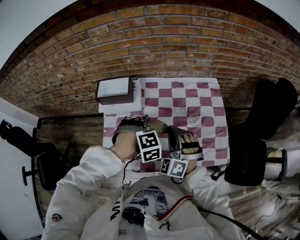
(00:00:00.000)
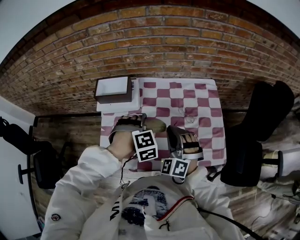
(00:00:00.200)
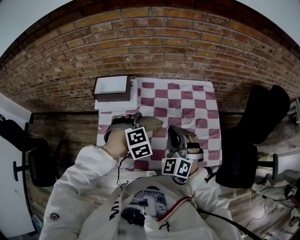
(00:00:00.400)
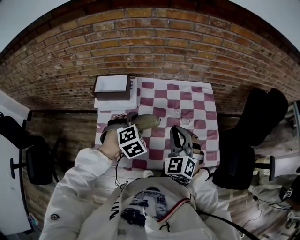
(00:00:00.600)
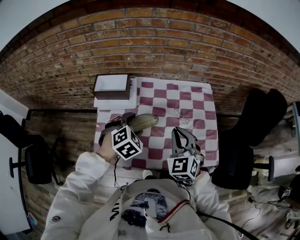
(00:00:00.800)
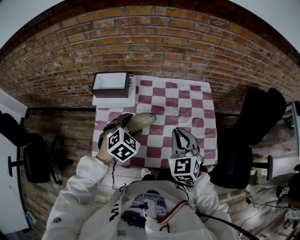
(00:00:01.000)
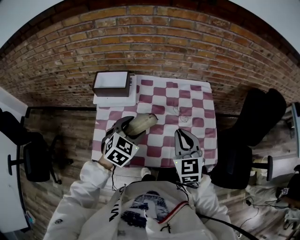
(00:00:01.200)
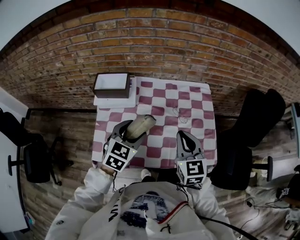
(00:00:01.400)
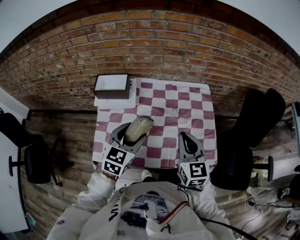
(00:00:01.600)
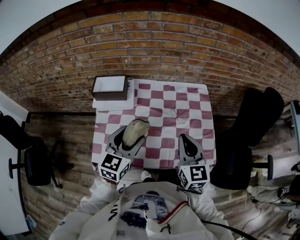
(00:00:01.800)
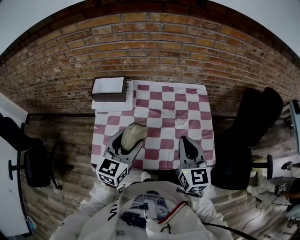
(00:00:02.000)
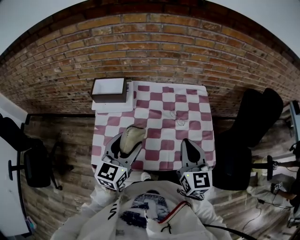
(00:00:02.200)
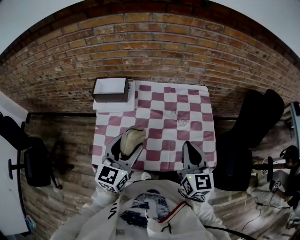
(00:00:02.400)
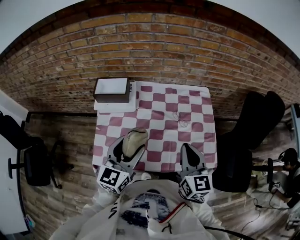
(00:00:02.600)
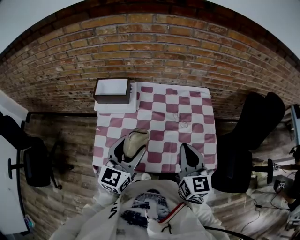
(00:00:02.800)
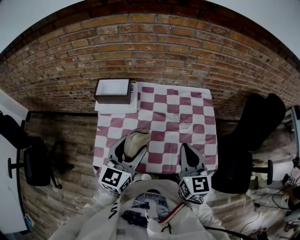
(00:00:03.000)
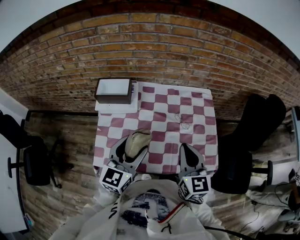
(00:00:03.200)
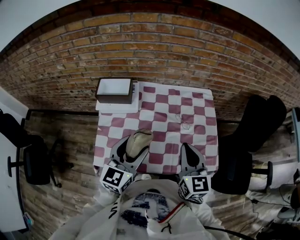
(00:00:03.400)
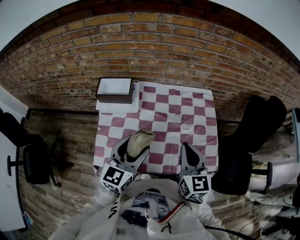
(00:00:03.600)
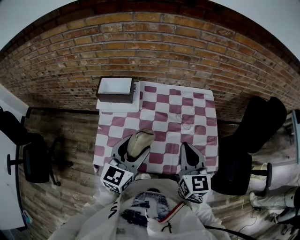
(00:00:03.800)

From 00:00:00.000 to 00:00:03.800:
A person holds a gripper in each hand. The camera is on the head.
From 00:00:00.000 to 00:00:01.200: The right gripper heads upward and to the right, covering about 10 cm, and rotates around the line of its fingers by approximately 50 degrees, clockwise from behind, while the left gripper heads upward, covering approximately 5 cm, and rotates roughly 60 degrees.
From 00:00:01.200 to 00:00:02.600: The left gripper travels upward and backward by about 10 cm, and tilts its fingers some 30 degrees upward. The right gripper moves approximately 5 cm, and turns by about 20 degrees.
From 00:00:02.600 to 00:00:03.800: The grippers make only small movements.

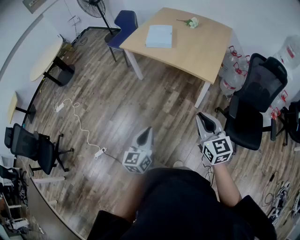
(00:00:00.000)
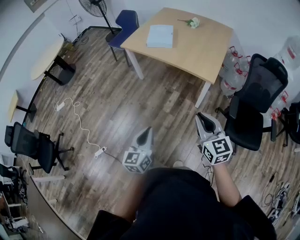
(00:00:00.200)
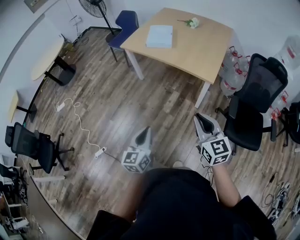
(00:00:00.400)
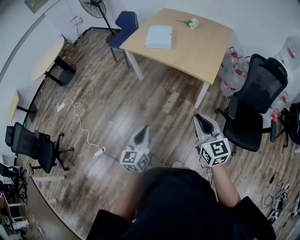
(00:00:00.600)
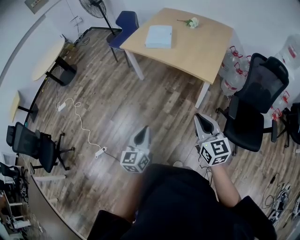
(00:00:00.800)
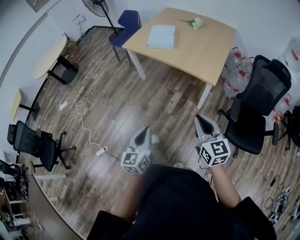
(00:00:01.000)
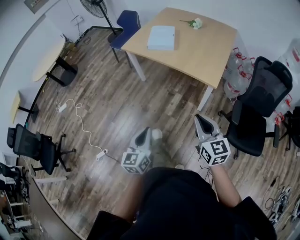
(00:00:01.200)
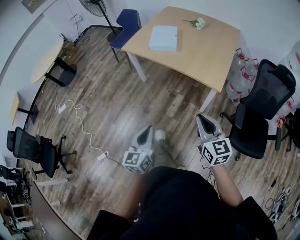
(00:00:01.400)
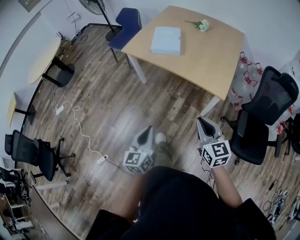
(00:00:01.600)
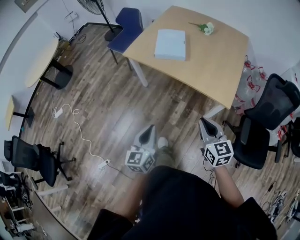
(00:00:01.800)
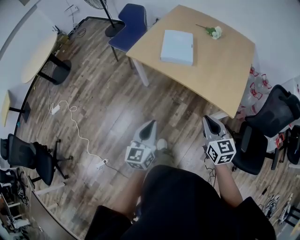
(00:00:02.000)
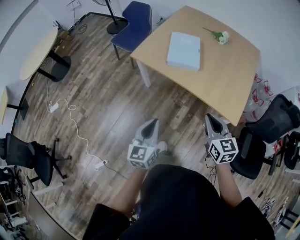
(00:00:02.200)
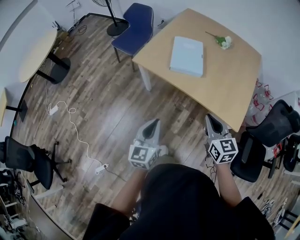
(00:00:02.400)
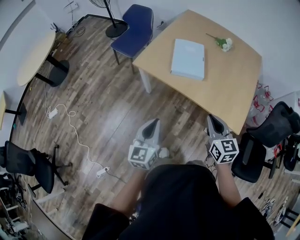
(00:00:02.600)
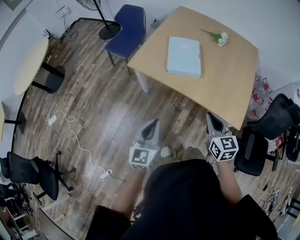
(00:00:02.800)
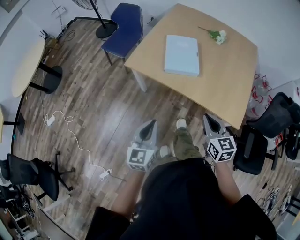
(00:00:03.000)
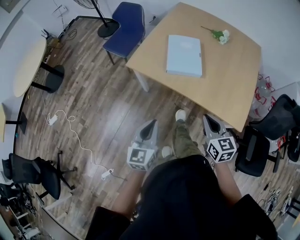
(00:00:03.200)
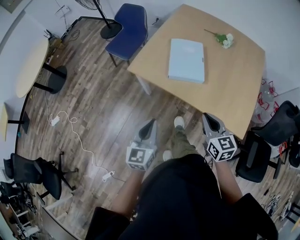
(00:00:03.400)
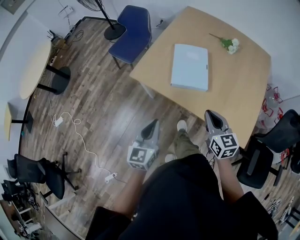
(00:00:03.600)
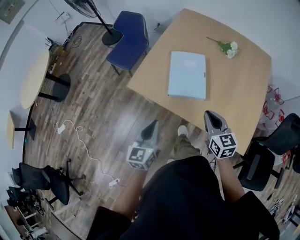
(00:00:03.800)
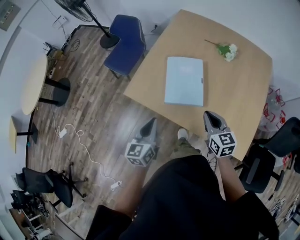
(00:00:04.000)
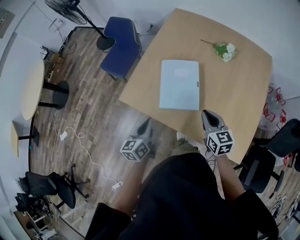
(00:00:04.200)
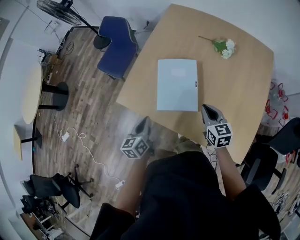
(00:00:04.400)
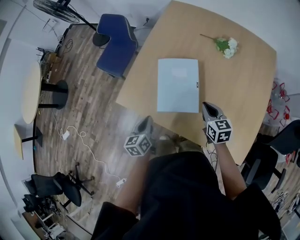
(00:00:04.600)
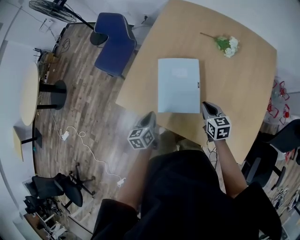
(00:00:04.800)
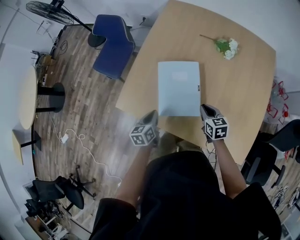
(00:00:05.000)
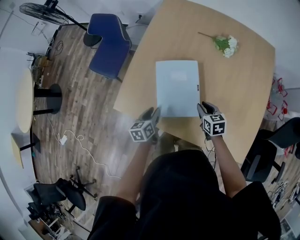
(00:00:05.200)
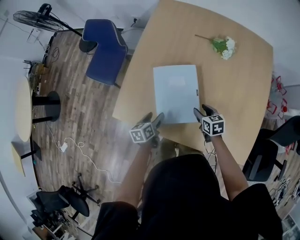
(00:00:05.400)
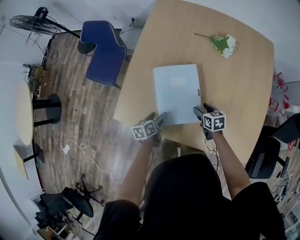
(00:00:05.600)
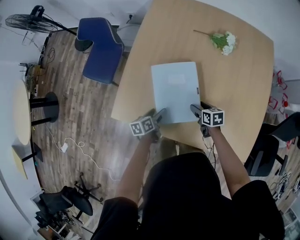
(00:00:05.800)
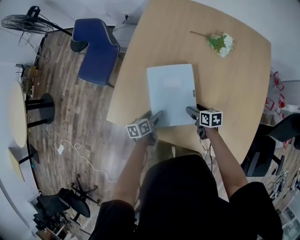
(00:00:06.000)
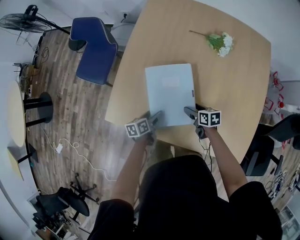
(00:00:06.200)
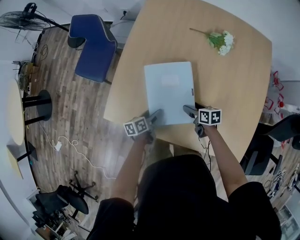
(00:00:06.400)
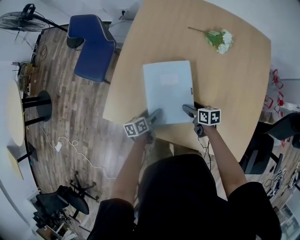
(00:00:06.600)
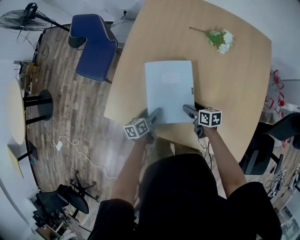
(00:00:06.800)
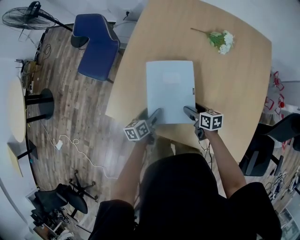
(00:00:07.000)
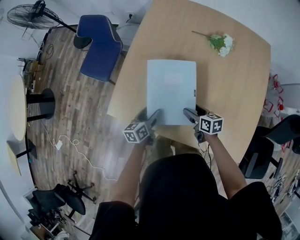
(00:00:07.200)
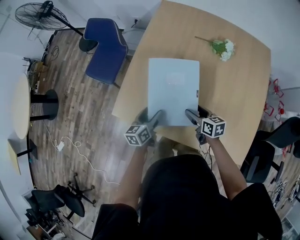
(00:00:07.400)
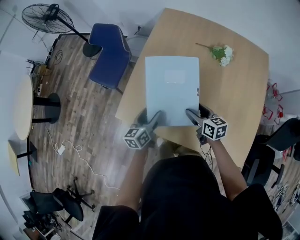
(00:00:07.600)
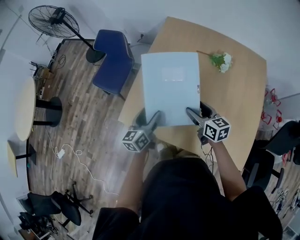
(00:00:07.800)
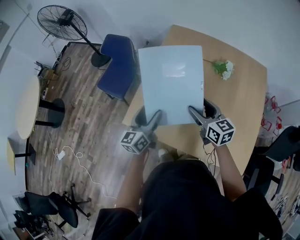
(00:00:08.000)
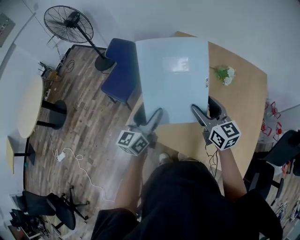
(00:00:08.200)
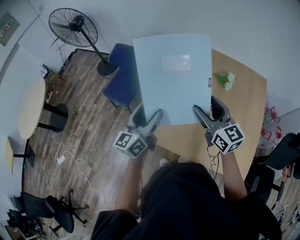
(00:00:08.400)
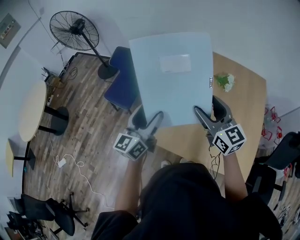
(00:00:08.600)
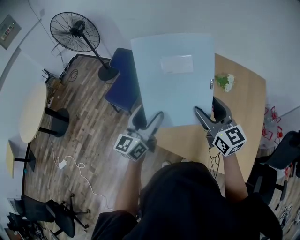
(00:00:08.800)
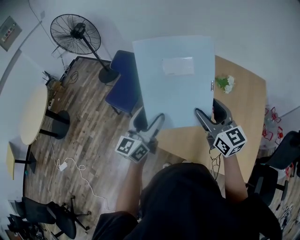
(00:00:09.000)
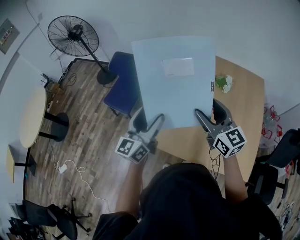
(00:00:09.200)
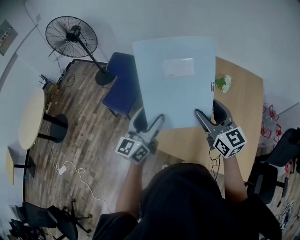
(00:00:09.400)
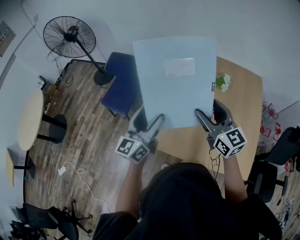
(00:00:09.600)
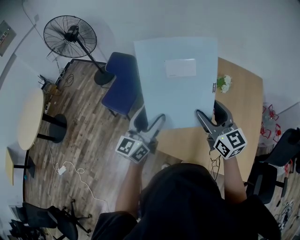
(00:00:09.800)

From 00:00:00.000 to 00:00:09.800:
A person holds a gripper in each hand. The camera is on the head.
From 00:00:00.000 to 00:00:01.400: The two grippers go some 10 cm forward.
From 00:00:01.400 to 00:00:02.800: The two grippers travel together, forward and to the left, roughly 50 cm.
From 00:00:02.800 to 00:00:04.200: The two grippers go about 35 cm forward. The left gripper rotates some 30 degrees.
From 00:00:04.200 to 00:00:05.600: Both grippers travel together downward and forward, about 25 cm. The right gripper rotates roughly 30 degrees, and opens up; the left gripper turns by roughly 30 degrees, and opens its fingers.
From 00:00:05.600 to 00:00:07.000: There are only small adjustments of the grippers.
From 00:00:07.000 to 00:00:08.400: The two grippers go approximately 40 cm upward. The left gripper points its fingers some 40 degrees further upward, while the right gripper tilts its fingers approximately 30 degrees upward.
From 00:00:08.400 to 00:00:09.800: The grippers make only small movements.

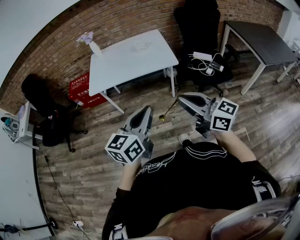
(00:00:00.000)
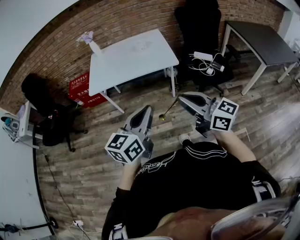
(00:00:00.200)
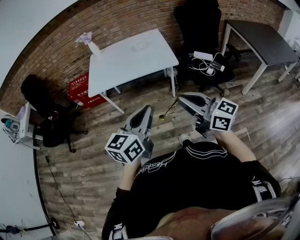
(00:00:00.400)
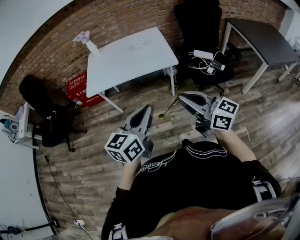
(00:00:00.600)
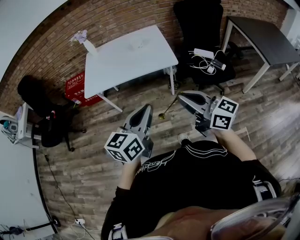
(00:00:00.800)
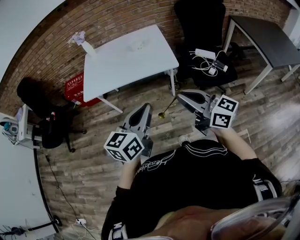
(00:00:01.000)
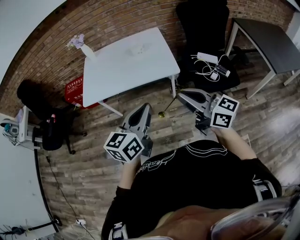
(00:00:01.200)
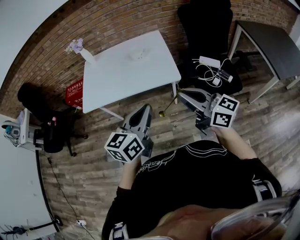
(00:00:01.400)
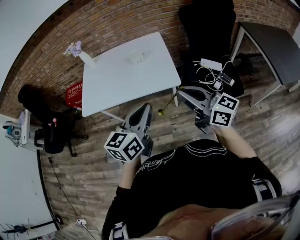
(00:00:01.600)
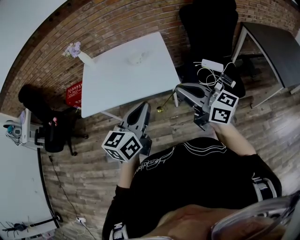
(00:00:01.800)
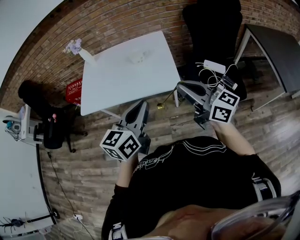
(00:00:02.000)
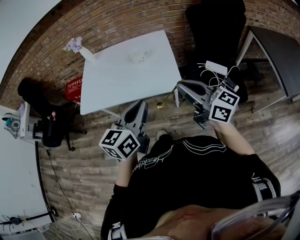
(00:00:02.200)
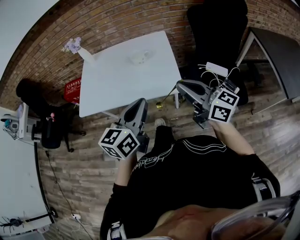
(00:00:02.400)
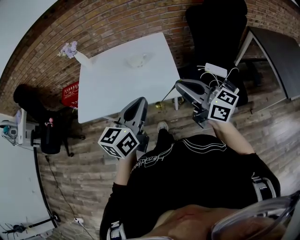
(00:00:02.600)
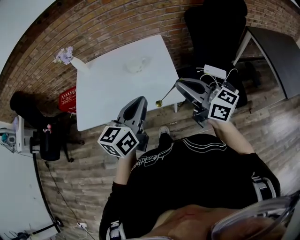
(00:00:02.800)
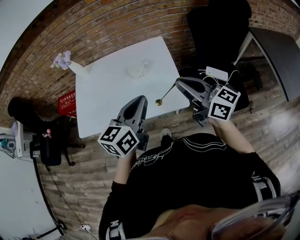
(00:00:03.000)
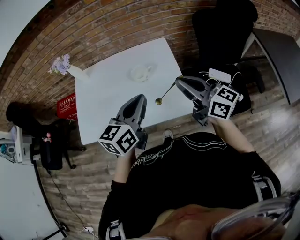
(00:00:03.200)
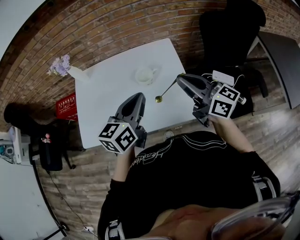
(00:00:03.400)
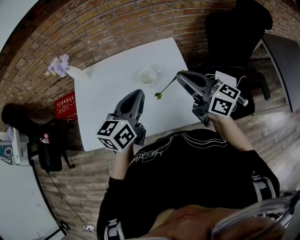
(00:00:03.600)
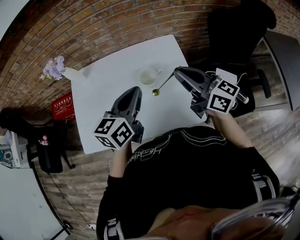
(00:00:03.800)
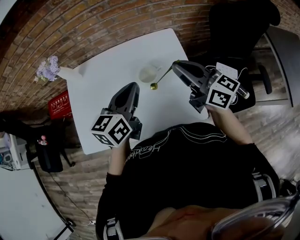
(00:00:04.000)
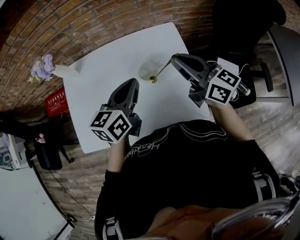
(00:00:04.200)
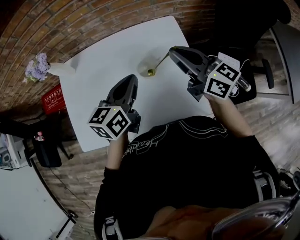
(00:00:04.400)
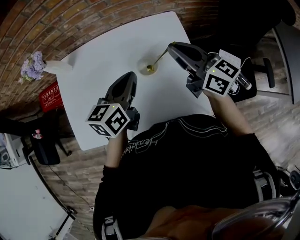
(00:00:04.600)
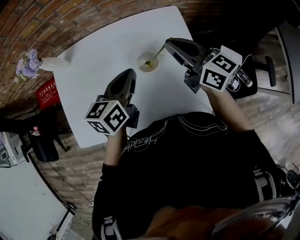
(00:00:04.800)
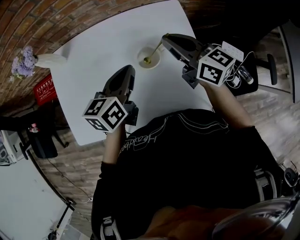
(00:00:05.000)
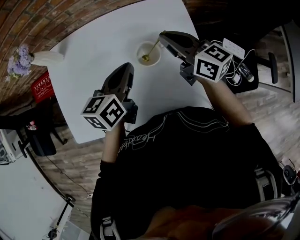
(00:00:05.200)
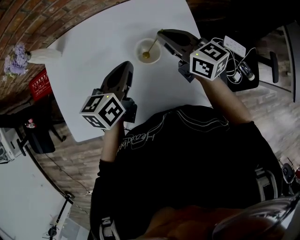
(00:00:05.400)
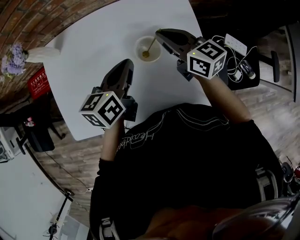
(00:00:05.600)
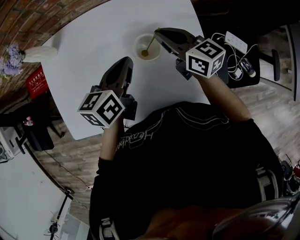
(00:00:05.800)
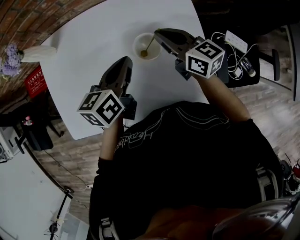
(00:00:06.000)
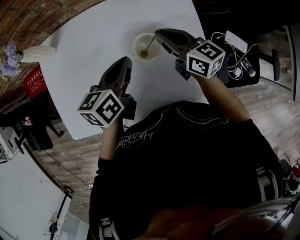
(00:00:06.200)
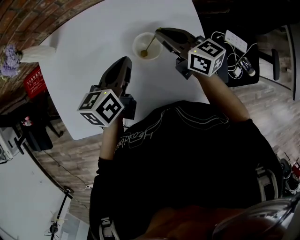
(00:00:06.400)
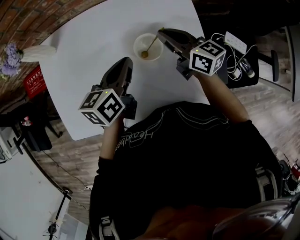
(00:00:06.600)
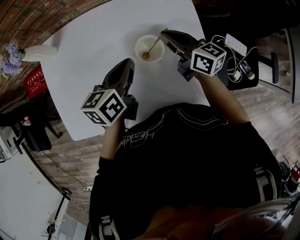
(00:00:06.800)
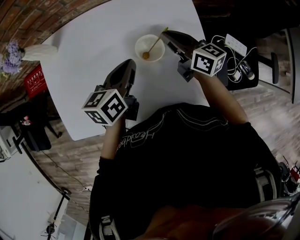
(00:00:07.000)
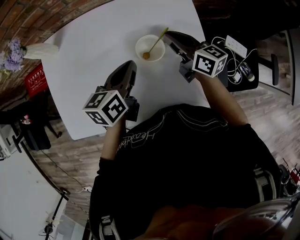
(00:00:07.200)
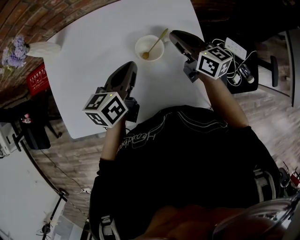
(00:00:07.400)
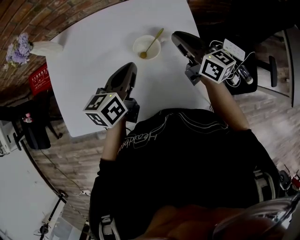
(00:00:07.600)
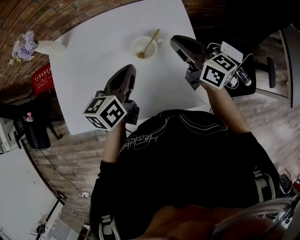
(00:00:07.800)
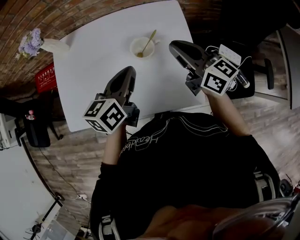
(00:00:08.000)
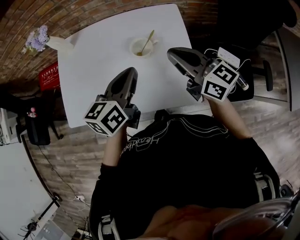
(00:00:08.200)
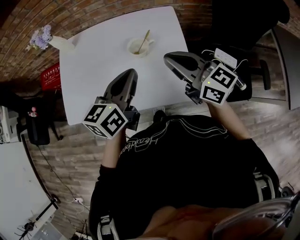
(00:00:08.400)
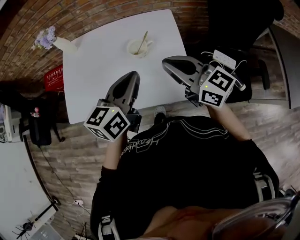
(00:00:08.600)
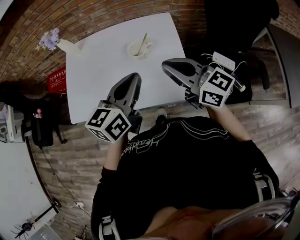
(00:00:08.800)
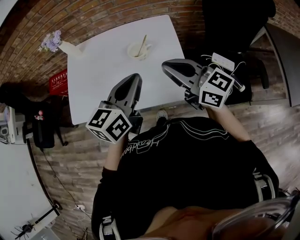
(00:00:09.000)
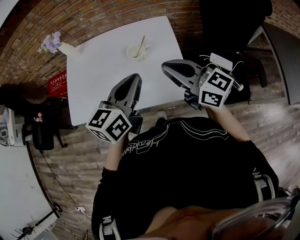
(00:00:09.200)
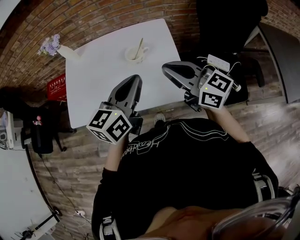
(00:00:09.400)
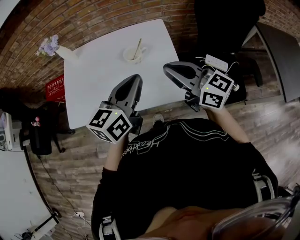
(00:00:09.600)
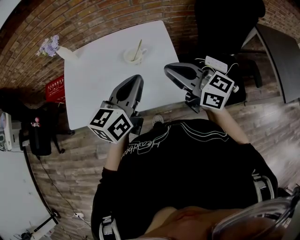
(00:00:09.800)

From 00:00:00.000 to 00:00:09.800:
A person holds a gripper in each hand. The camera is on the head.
From 00:00:00.000 to 00:00:01.400: The grippers both shift forward and to the right by about 25 cm.
From 00:00:01.400 to 00:00:02.800: The grippers both shift forward by roughly 20 cm.
From 00:00:02.800 to 00:00:04.200: Both grippers travel together forward, some 30 cm.
From 00:00:04.200 to 00:00:05.600: Both grippers move downward and forward, roughly 15 cm.
From 00:00:05.600 to 00:00:07.000: The right gripper changes place by approximately 5 cm.
From 00:00:07.000 to 00:00:08.400: Both grippers travel together upward and backward, about 25 cm. The right gripper changes its angle by some 20 degrees.
From 00:00:08.400 to 00:00:09.800: The right gripper shifts approximately 10 cm backward. The left gripper moves backward and upward, some 10 cm.
